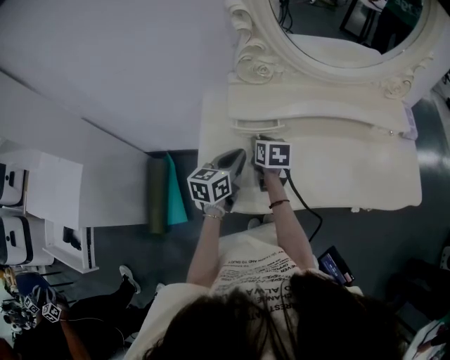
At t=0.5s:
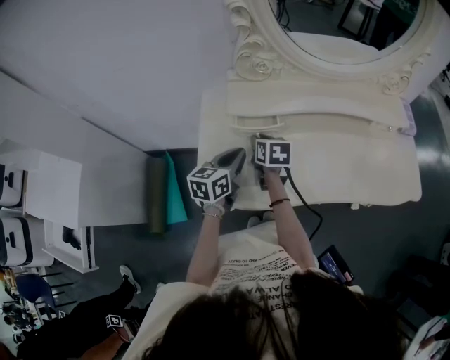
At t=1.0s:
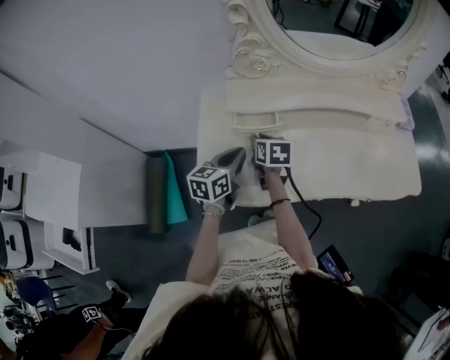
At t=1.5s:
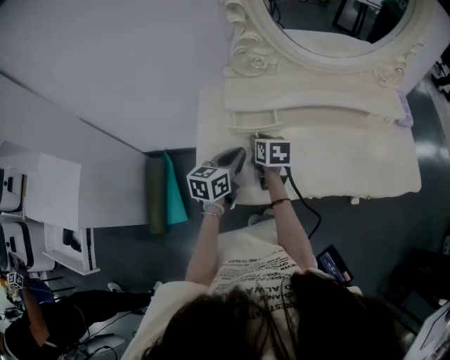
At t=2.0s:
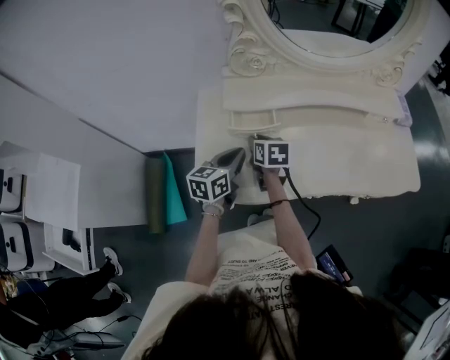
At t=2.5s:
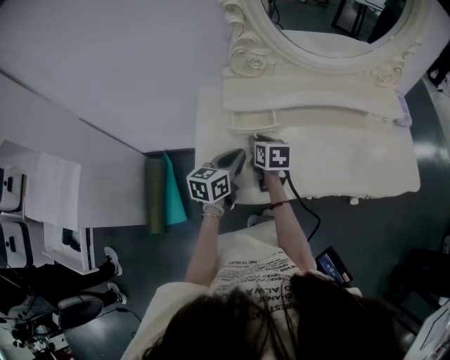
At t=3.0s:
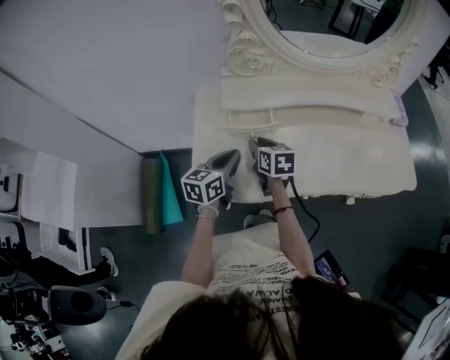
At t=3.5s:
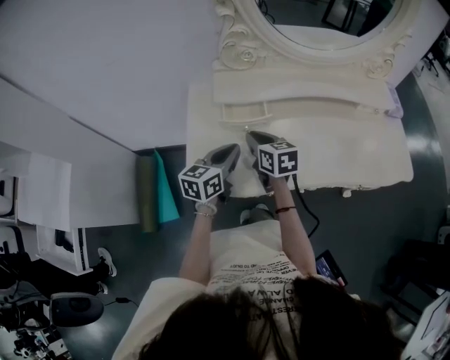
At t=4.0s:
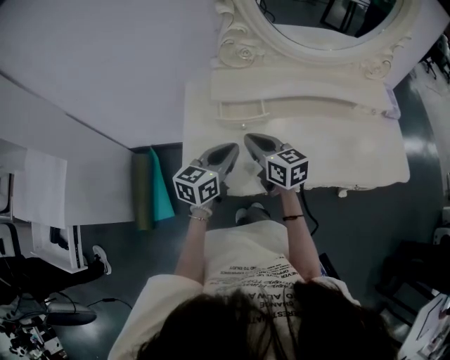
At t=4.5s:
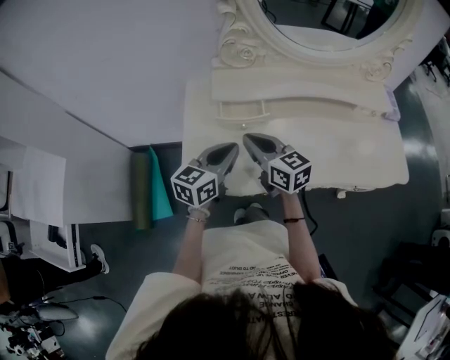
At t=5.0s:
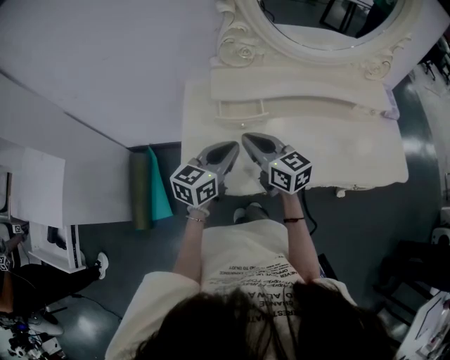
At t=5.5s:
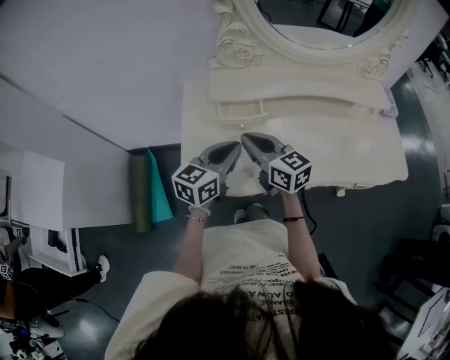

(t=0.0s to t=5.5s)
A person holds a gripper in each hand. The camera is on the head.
t=0.0s - t=2.0s: The grippers stay close to where they were, moving slightly.
t=2.0s - t=3.5s: The right gripper moves approximately 5 cm.
t=3.5s - t=5.5s: The right gripper is displaced upward by approximately 5 cm, and swivels approximately 20 degrees.

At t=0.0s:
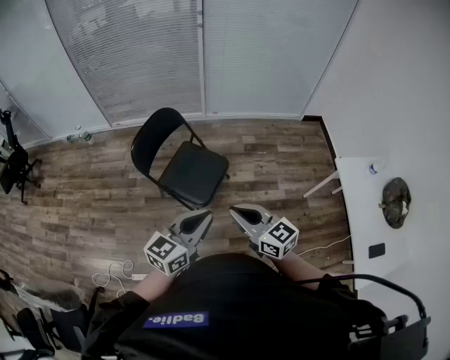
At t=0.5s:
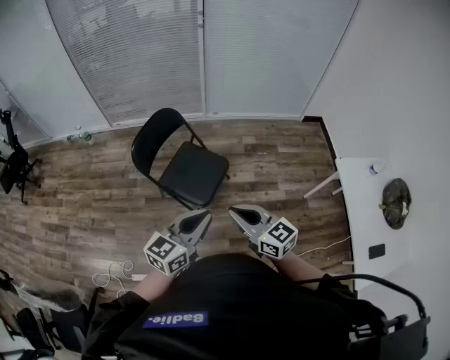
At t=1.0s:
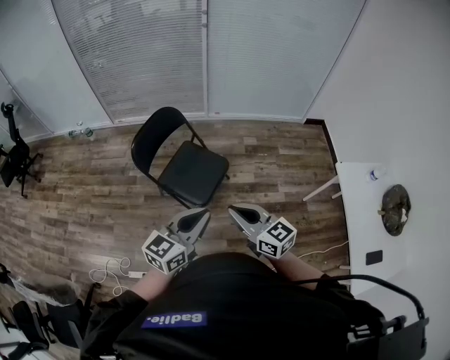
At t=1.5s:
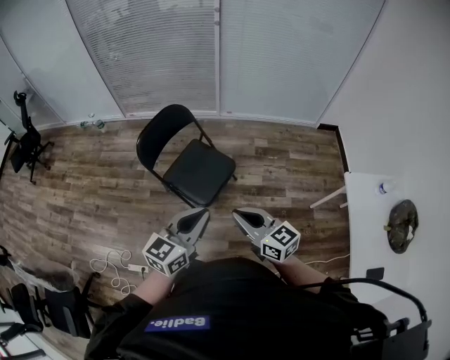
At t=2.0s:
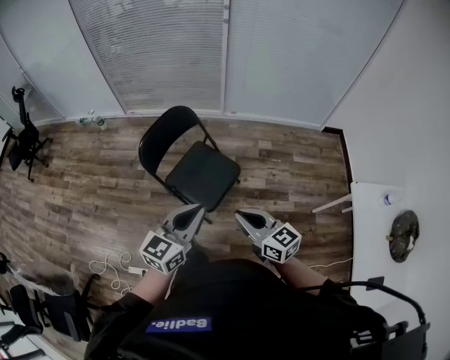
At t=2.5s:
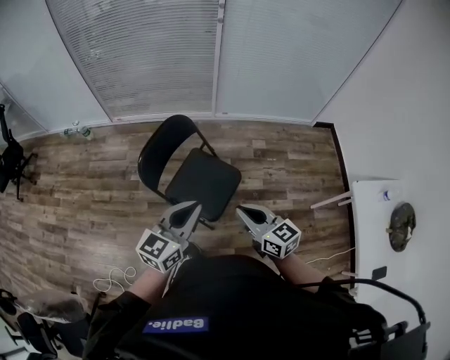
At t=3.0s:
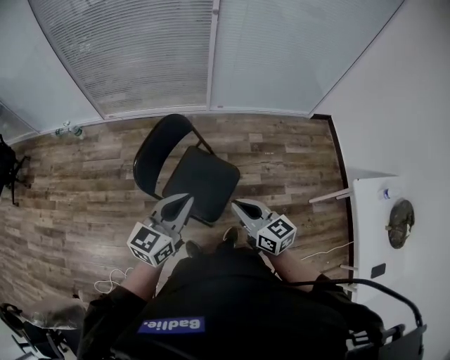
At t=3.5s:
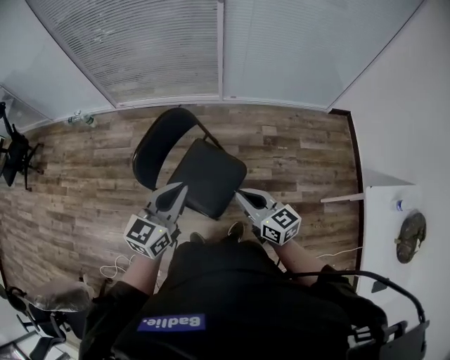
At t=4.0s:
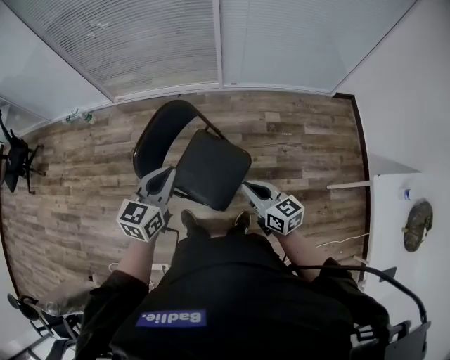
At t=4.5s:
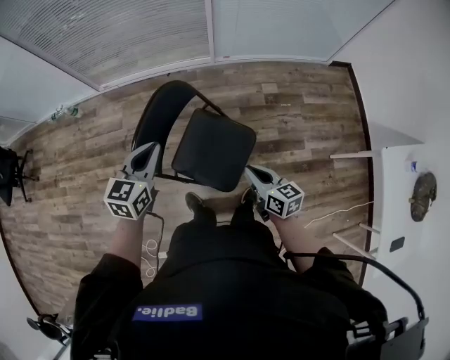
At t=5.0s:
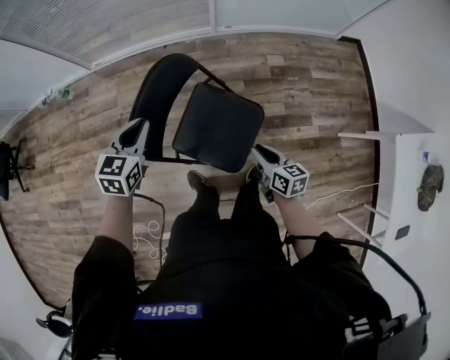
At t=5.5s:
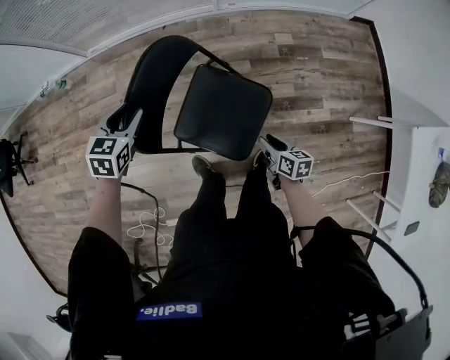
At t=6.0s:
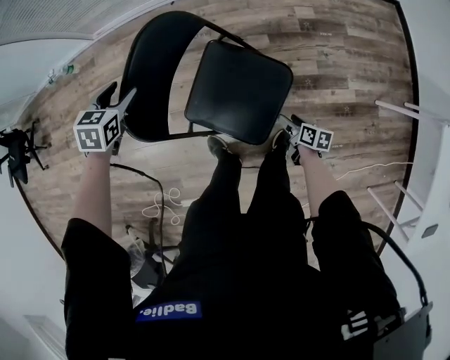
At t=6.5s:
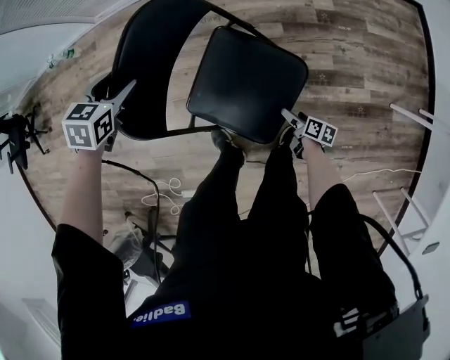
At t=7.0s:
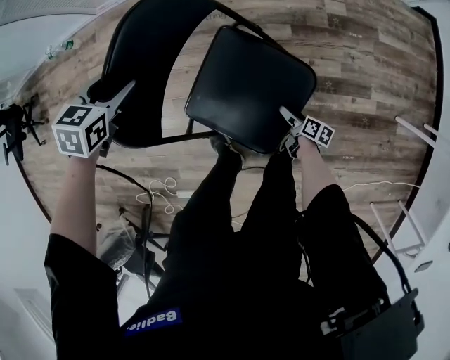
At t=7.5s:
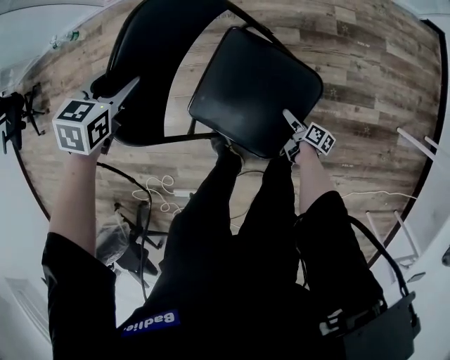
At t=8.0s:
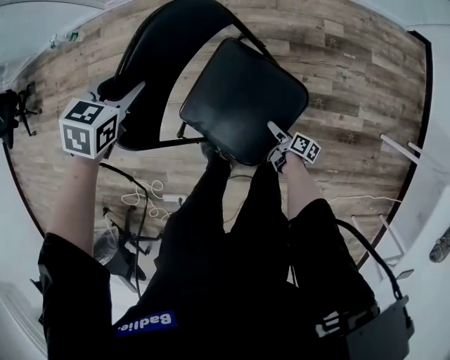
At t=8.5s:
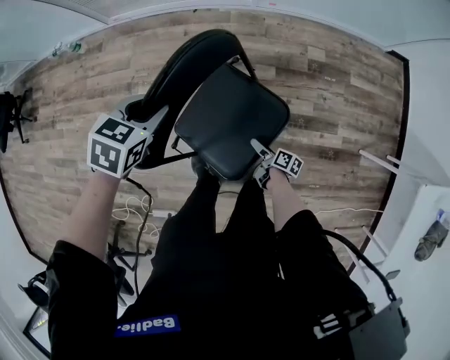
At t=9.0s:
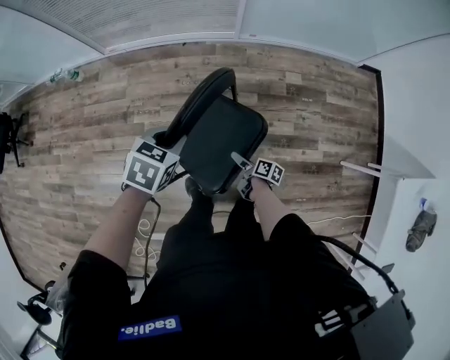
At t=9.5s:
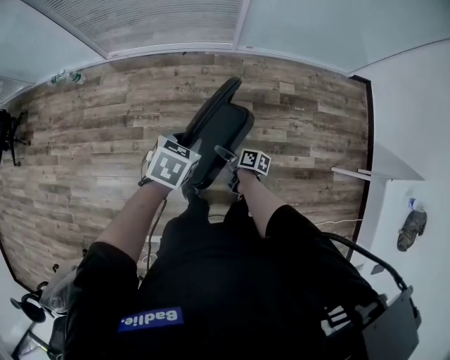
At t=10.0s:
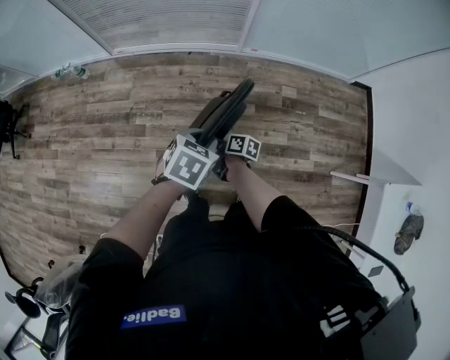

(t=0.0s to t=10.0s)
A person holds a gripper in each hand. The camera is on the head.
t=0.0s - t=2.0s: Both grippers move forward, some 10 cm.
t=2.0s - t=4.0s: Both grippers travel together forward, some 25 cm.
t=4.0s - t=6.0s: The left gripper moves downward, forward and to the left, about 40 cm, points its fingers about 40 degrees further downward, and opens, while the right gripper moves downward, some 50 cm, twists some 40 degrees clockwise, seen from behind, and opens up.
t=6.0s - t=8.0s: The right gripper shifts some 15 cm downward and to the left, and opens.
t=8.0s - t=10.0s: The left gripper shifts about 25 cm upward, backward and to the right, and closes its fingers. Meanwhile the right gripper heads upward and to the left, covering roughly 40 cm.

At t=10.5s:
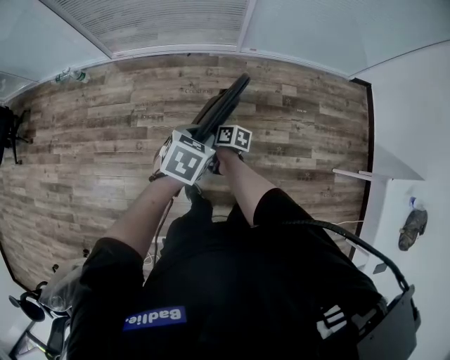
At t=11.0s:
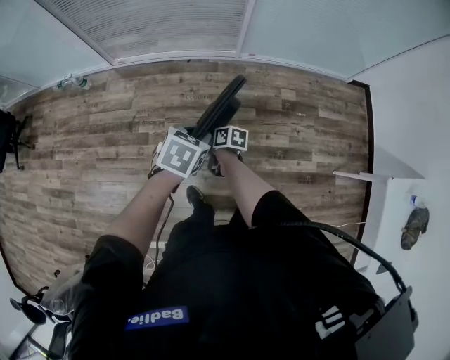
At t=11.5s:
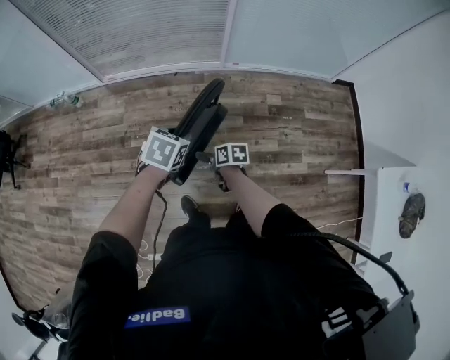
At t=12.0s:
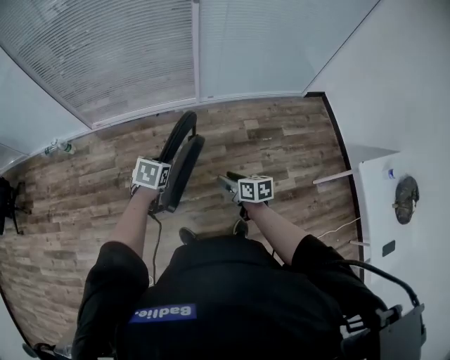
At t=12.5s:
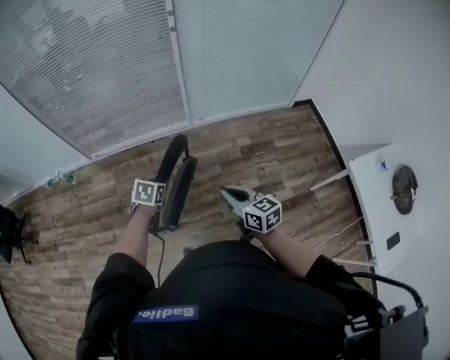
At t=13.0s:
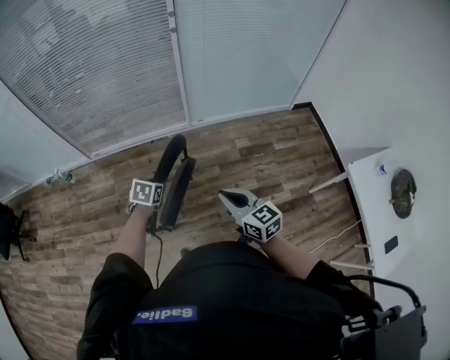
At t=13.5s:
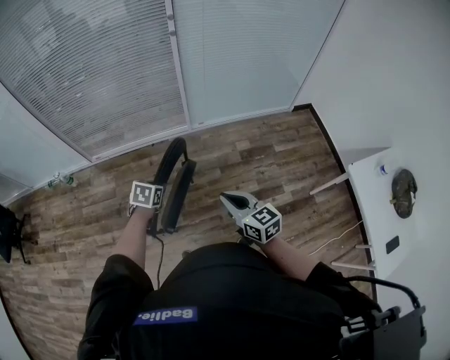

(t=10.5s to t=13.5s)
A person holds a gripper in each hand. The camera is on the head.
t=10.5s - t=12.0s: The right gripper is displaced to the right, upward and backward by roughly 25 cm, swivels approximately 30 degrees, and closes its fingers.
t=12.0s - t=13.5s: The right gripper heads upward, covering roughly 15 cm, swivels about 30 degrees, and closes up.

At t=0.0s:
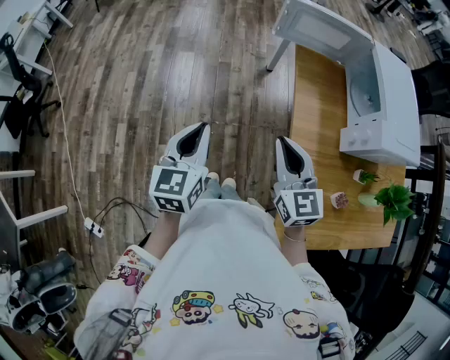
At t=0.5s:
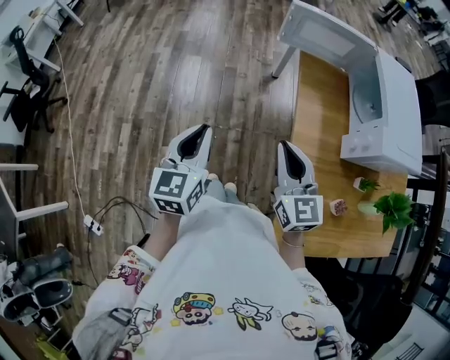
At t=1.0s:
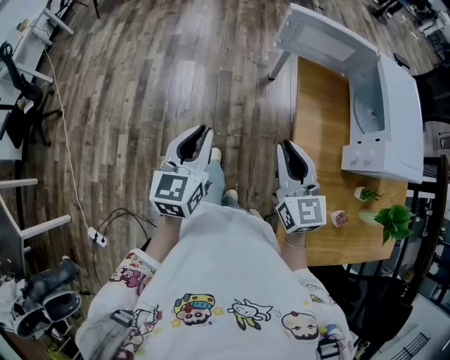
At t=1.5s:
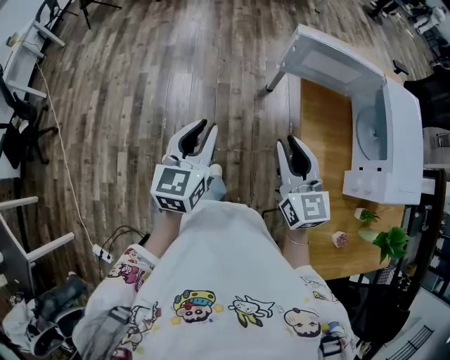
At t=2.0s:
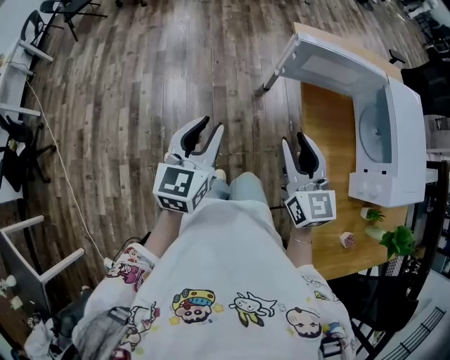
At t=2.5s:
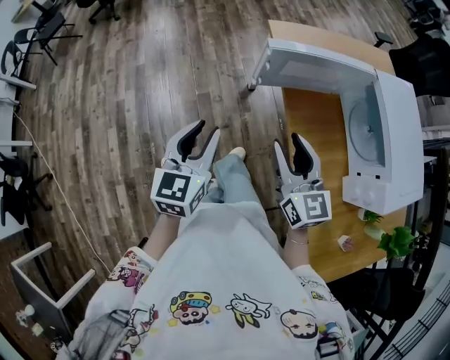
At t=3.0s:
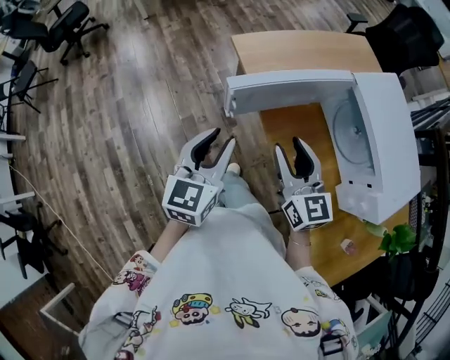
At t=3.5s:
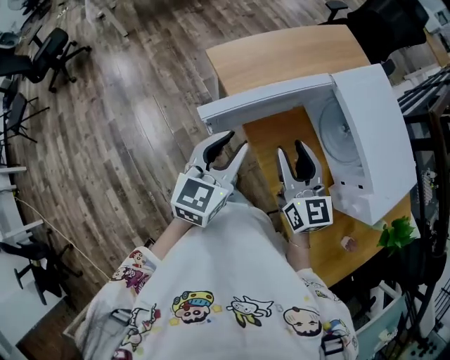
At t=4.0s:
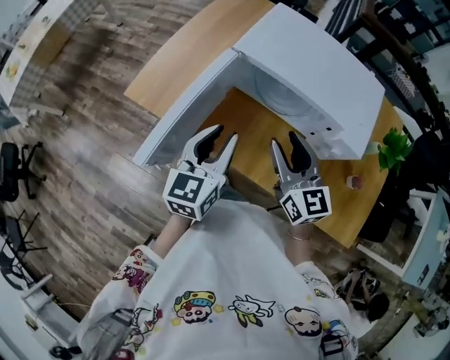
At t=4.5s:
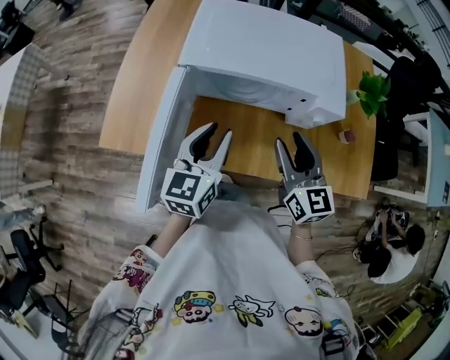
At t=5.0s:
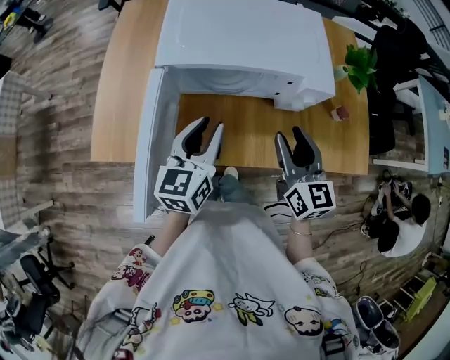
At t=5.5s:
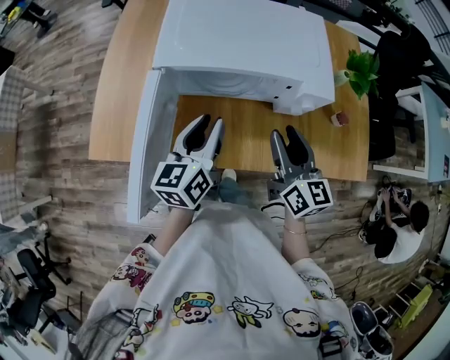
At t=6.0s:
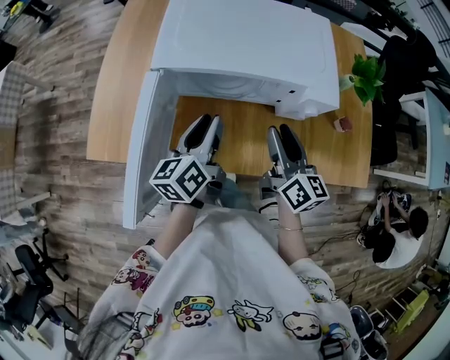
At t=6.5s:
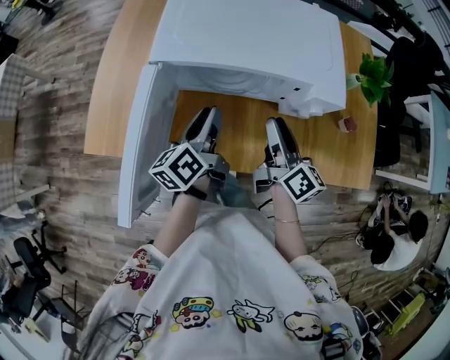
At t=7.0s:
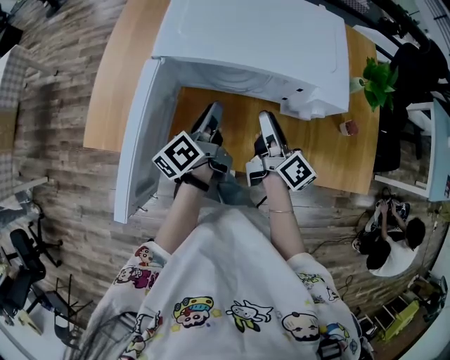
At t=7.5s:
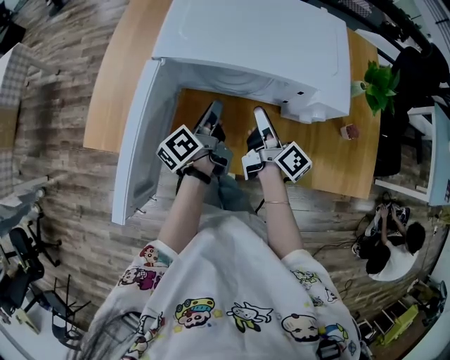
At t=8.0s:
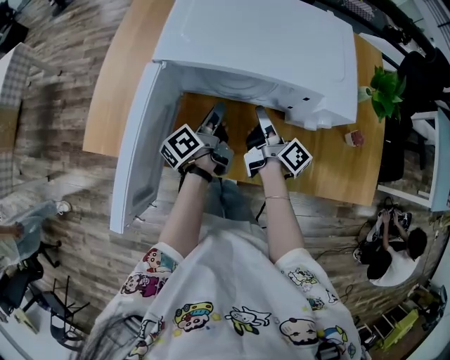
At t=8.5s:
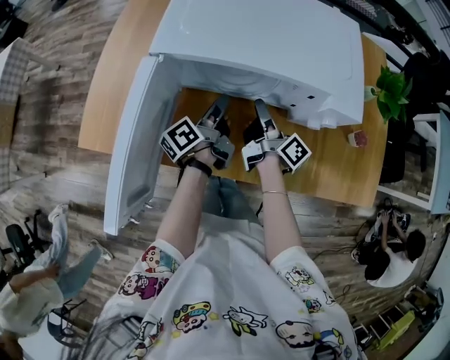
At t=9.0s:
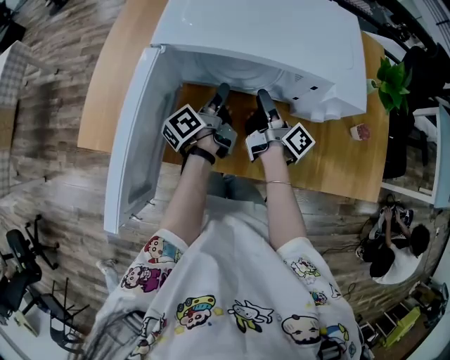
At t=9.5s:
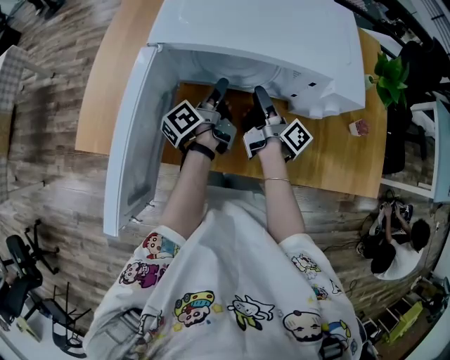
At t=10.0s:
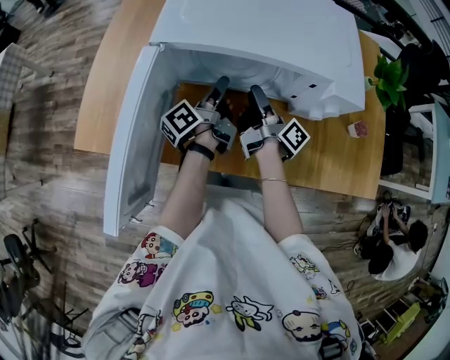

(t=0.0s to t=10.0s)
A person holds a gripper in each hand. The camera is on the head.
t=0.0s - t=2.0s: The grippers both shift forward by some 25 cm. The right gripper opens its fingers; the left gripper opens its fingers.
t=2.0s - t=4.0s: The left gripper moves approximately 40 cm, and turns by approximately 60 degrees, while the right gripper changes place by approximately 30 cm, and changes its angle by some 50 degrees.
t=4.0s - t=6.0s: The left gripper shifts by approximately 10 cm, and swivels about 30 degrees, while the right gripper ends up approximately 10 cm from where it was, and swivels some 40 degrees.
t=6.0s - t=8.0s: The two grippers go roughly 15 cm downward and forward. The right gripper rotates around the line of its fingers by about 40 degrees, clockwise from behind. The left gripper turns by about 30 degrees.
t=8.0s - t=10.0s: The grippers make only small movements.
